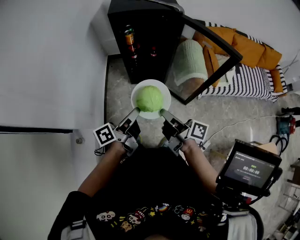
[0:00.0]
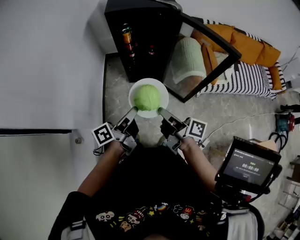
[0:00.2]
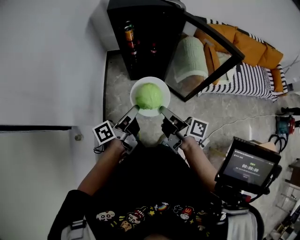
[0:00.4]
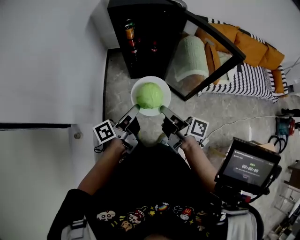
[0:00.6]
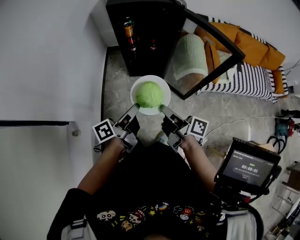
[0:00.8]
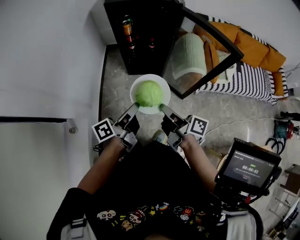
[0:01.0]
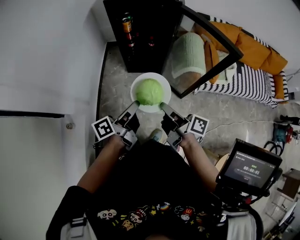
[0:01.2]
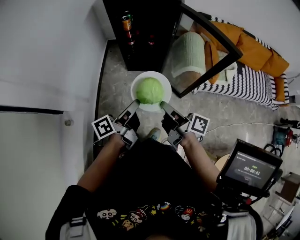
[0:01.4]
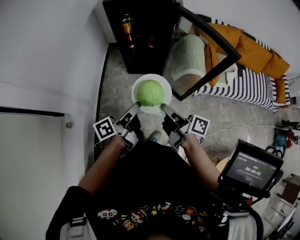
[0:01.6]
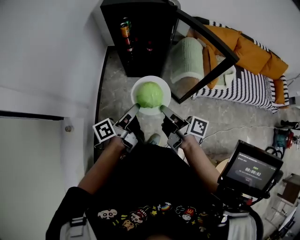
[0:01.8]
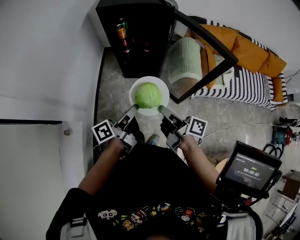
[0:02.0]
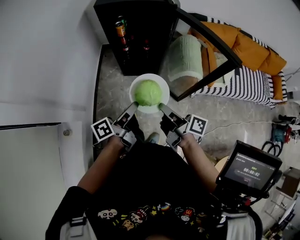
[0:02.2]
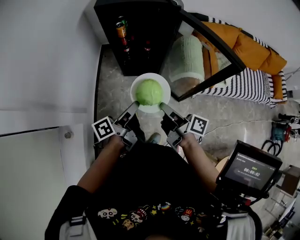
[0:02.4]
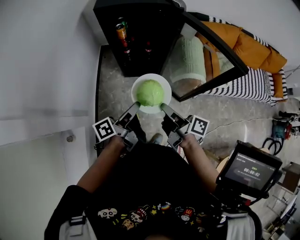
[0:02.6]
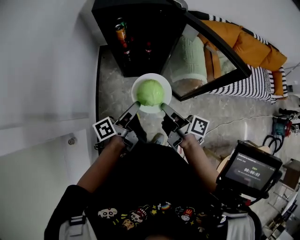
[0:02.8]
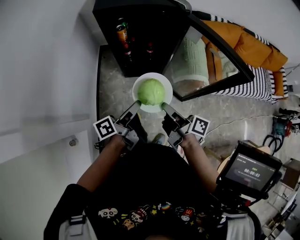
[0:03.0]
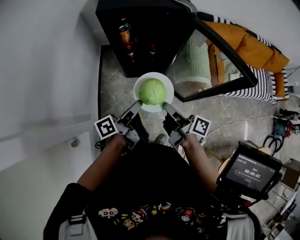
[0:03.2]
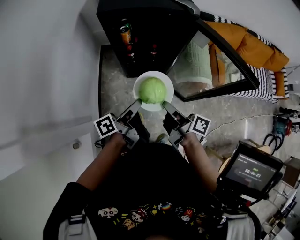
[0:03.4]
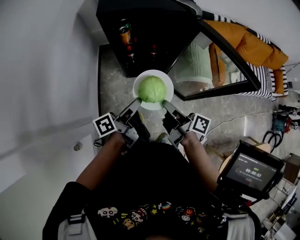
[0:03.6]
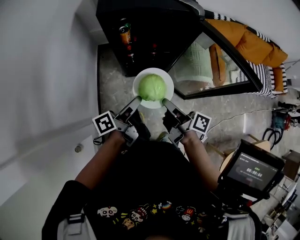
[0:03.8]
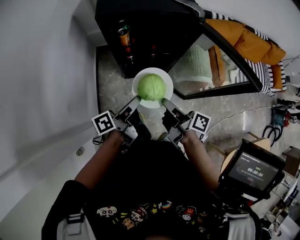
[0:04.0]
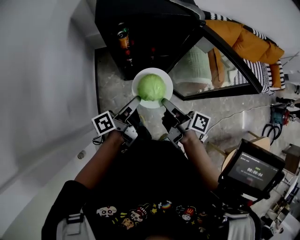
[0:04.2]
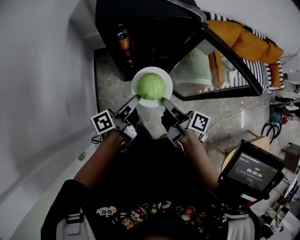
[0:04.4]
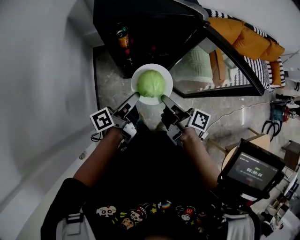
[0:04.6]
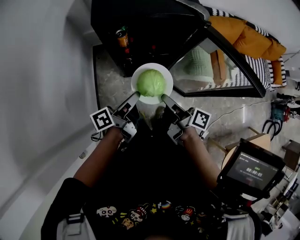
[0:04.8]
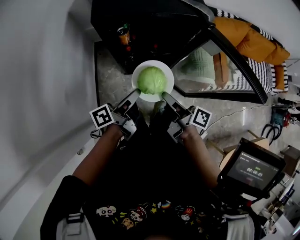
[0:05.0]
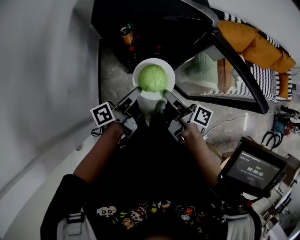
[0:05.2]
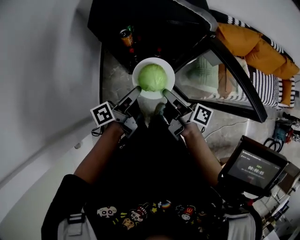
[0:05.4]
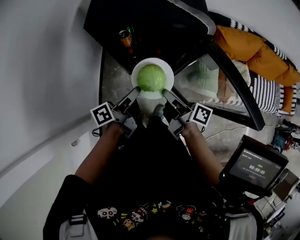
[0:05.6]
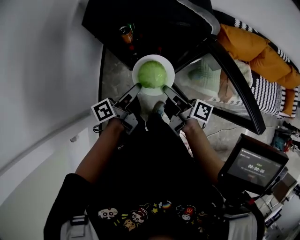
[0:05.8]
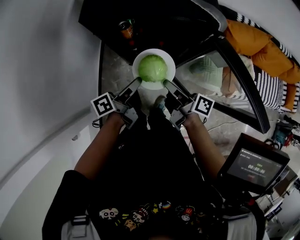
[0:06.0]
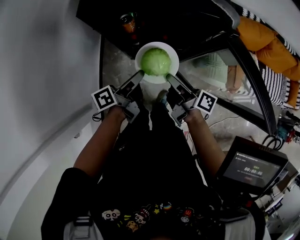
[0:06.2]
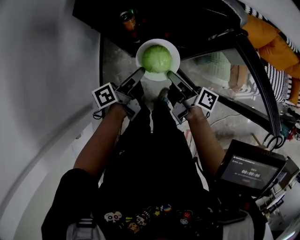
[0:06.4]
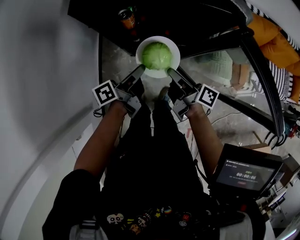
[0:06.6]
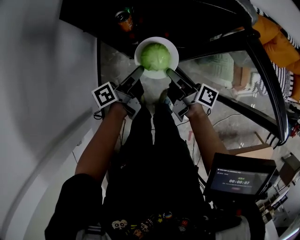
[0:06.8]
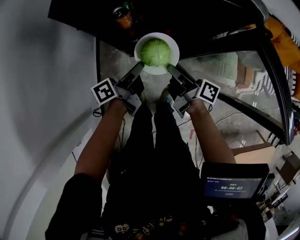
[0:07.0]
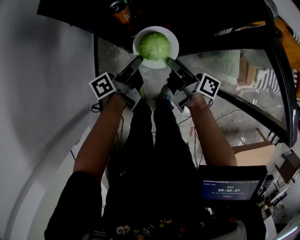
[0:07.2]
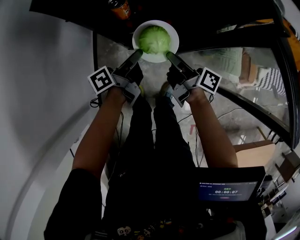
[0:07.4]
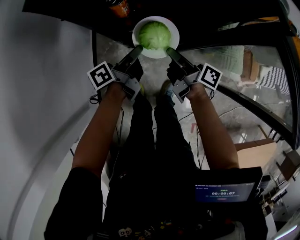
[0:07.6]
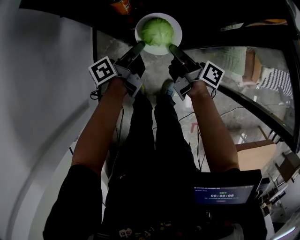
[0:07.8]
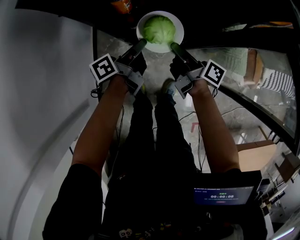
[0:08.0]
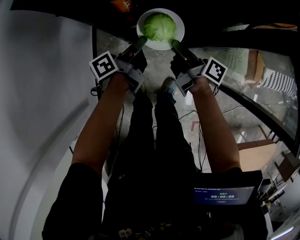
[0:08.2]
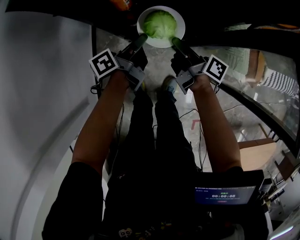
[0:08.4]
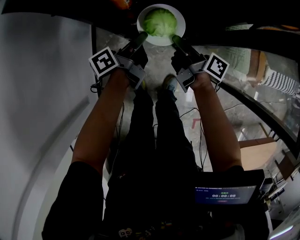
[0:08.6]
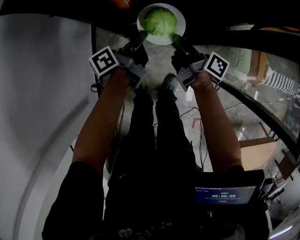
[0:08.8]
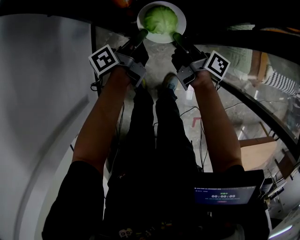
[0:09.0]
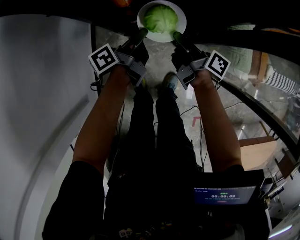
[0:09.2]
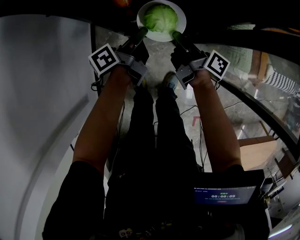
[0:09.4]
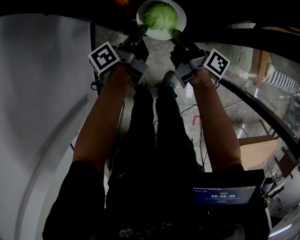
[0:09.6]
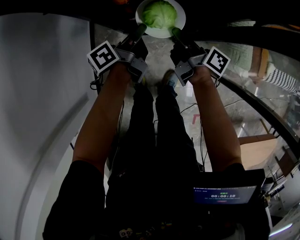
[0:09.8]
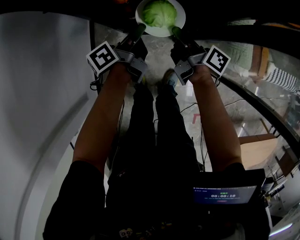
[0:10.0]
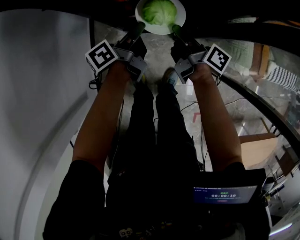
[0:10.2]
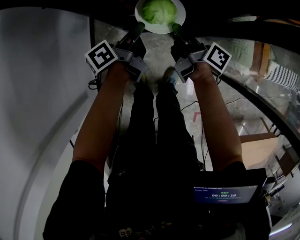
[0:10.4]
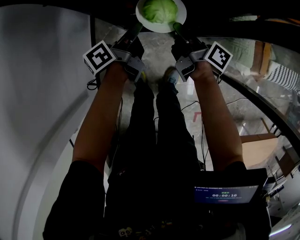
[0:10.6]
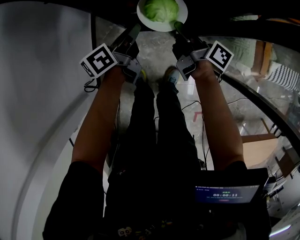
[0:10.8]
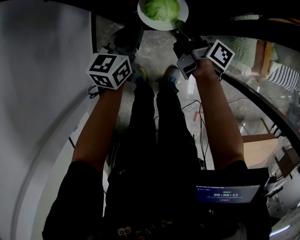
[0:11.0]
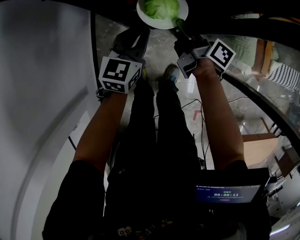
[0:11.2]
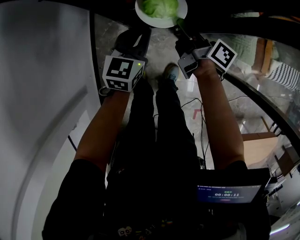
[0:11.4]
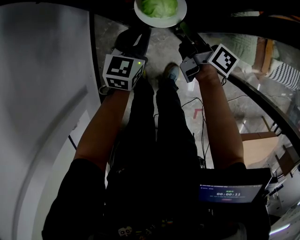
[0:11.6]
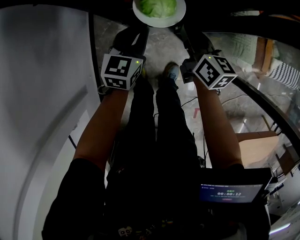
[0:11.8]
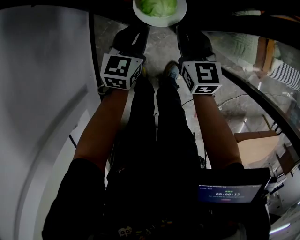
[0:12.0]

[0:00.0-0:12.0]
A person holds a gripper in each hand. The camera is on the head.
0:00.0 to 0:03.0: Both grippers stay about where they are.
0:03.0 to 0:04.4: Both grippers stay about where they are.
0:04.4 to 0:10.4: There are only small adjustments of the grippers.
0:10.4 to 0:12.0: The left gripper twists some 70 degrees clockwise, seen from behind, while the right gripper rotates around the line of its fingers by roughly 80 degrees, counterclockwise from behind.

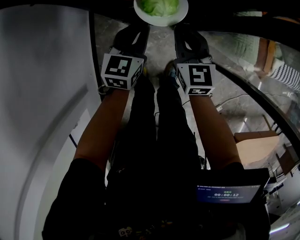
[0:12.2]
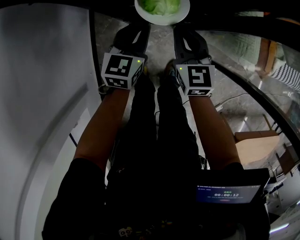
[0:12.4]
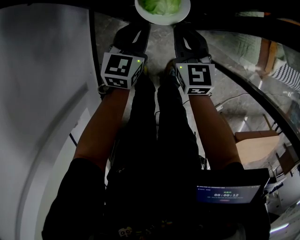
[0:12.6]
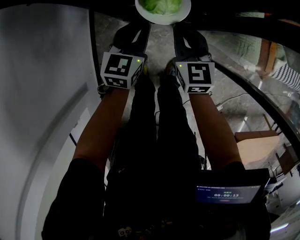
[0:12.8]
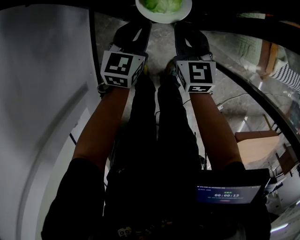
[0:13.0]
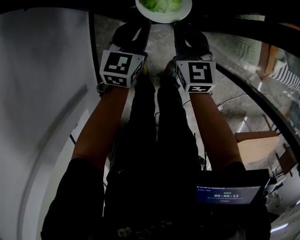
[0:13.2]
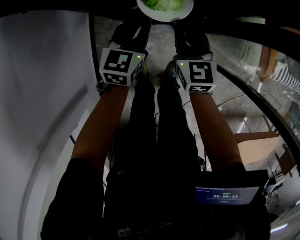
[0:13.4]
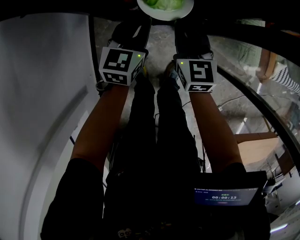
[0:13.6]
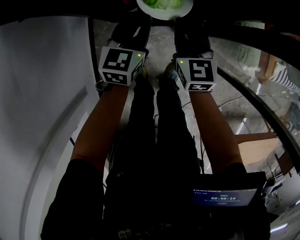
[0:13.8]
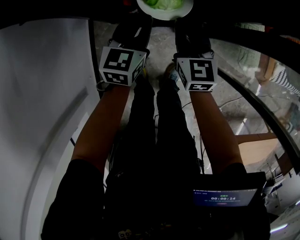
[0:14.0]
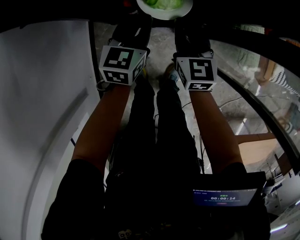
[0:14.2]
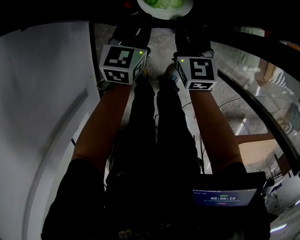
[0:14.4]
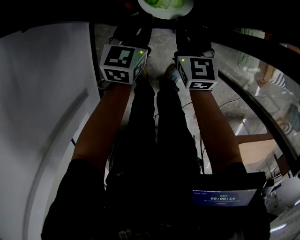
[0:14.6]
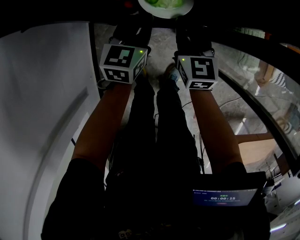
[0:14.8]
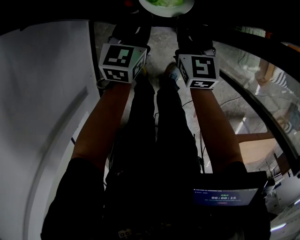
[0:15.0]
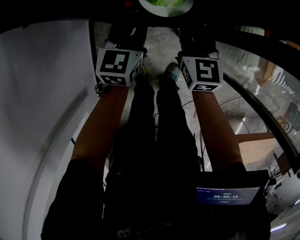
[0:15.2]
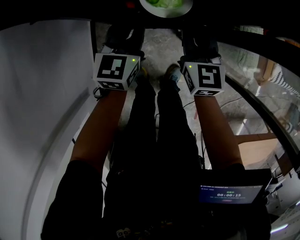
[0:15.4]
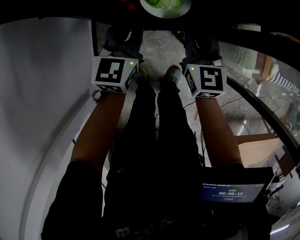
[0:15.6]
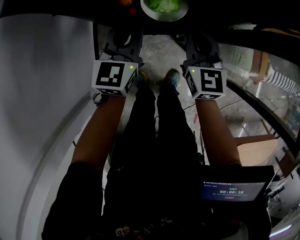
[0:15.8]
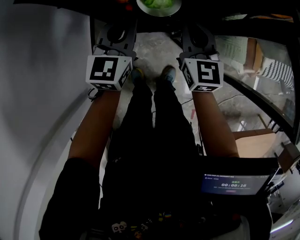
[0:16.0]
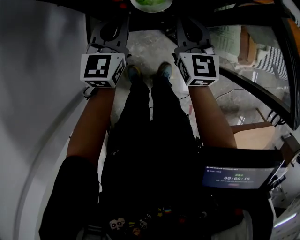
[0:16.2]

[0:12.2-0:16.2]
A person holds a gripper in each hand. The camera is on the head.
0:12.2 to 0:13.6: There are only small adjustments of the grippers.
0:13.6 to 0:14.8: The grippers make only small movements.
0:14.8 to 0:16.2: The right gripper travels upward by about 5 cm. The left gripper goes some 10 cm upward and backward.

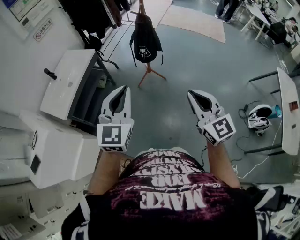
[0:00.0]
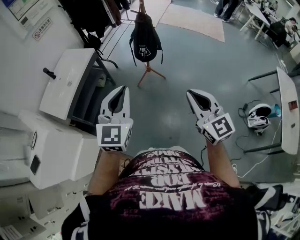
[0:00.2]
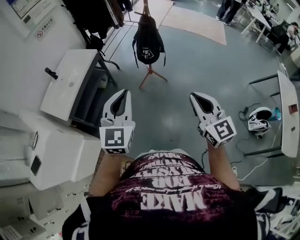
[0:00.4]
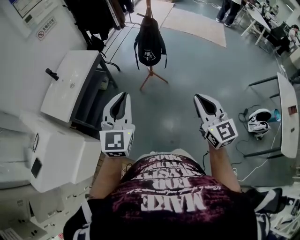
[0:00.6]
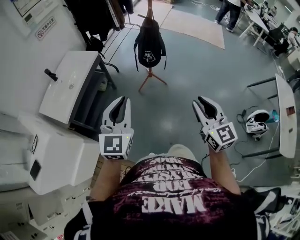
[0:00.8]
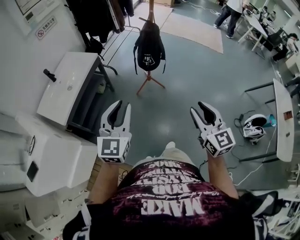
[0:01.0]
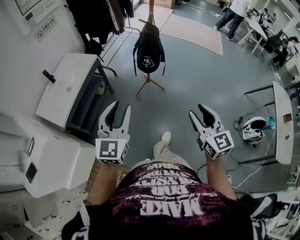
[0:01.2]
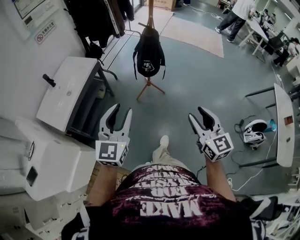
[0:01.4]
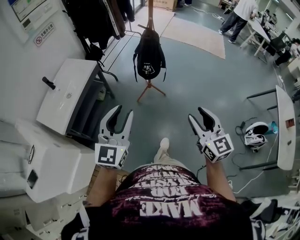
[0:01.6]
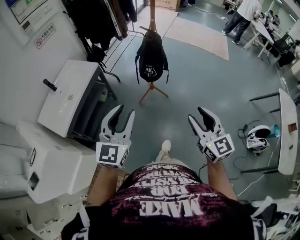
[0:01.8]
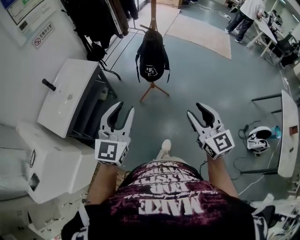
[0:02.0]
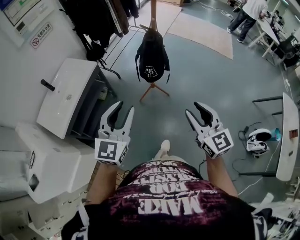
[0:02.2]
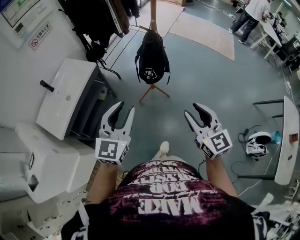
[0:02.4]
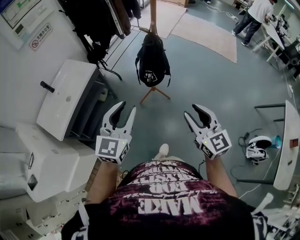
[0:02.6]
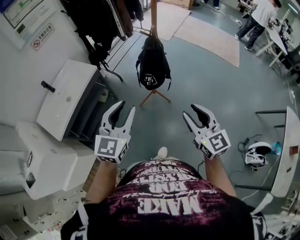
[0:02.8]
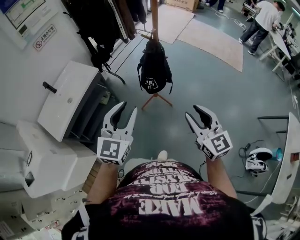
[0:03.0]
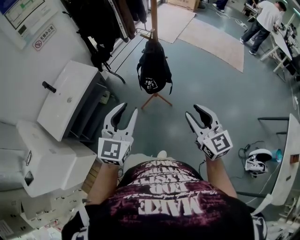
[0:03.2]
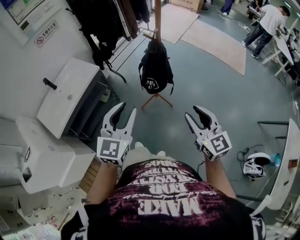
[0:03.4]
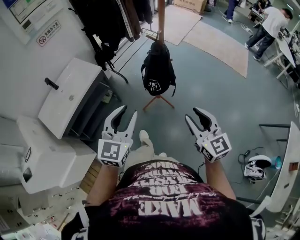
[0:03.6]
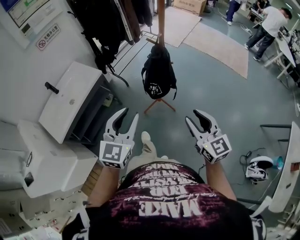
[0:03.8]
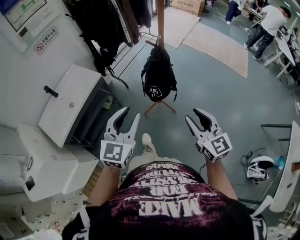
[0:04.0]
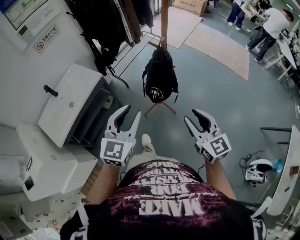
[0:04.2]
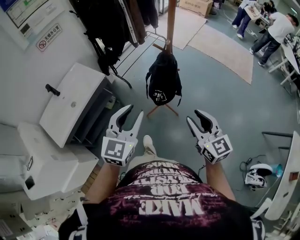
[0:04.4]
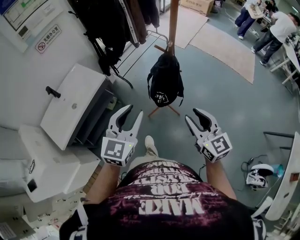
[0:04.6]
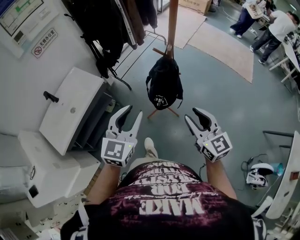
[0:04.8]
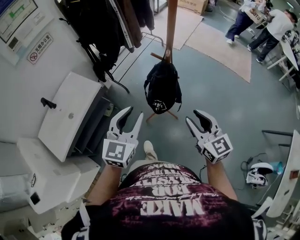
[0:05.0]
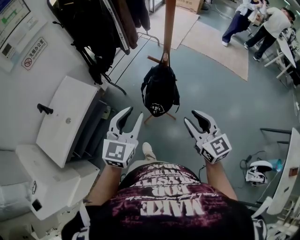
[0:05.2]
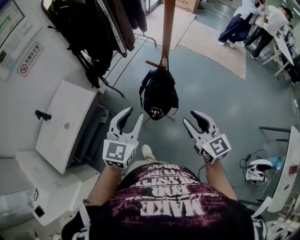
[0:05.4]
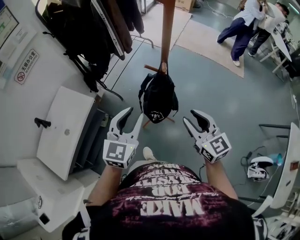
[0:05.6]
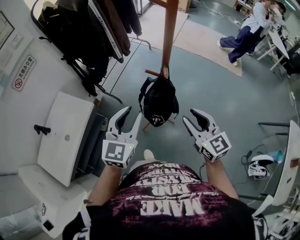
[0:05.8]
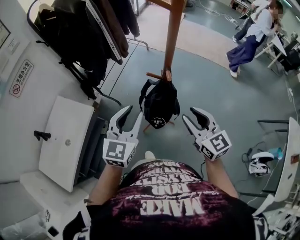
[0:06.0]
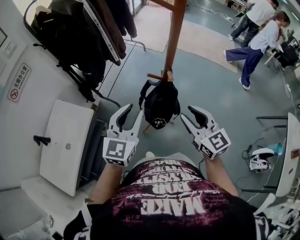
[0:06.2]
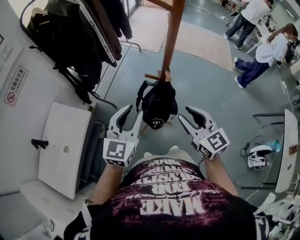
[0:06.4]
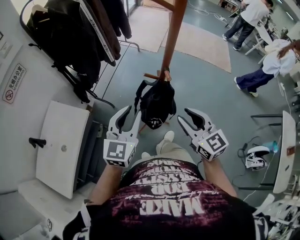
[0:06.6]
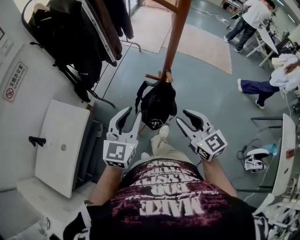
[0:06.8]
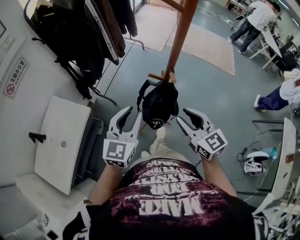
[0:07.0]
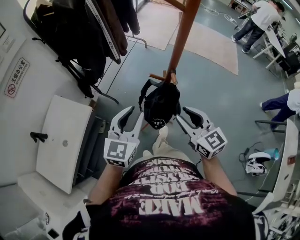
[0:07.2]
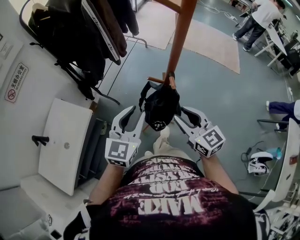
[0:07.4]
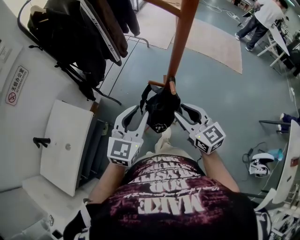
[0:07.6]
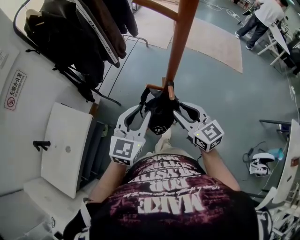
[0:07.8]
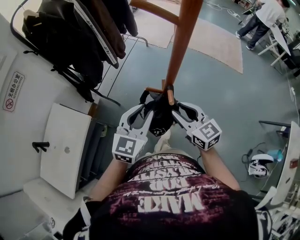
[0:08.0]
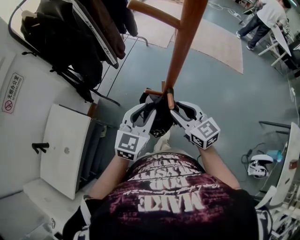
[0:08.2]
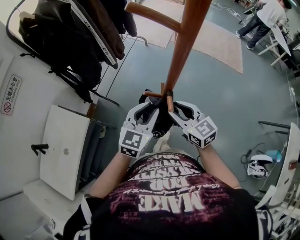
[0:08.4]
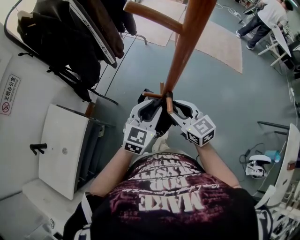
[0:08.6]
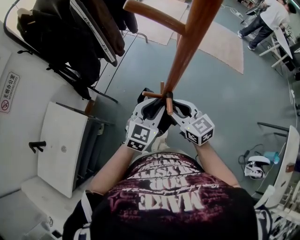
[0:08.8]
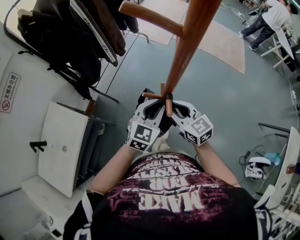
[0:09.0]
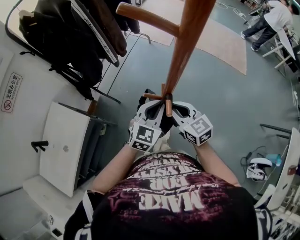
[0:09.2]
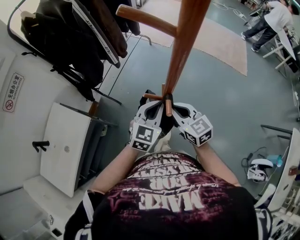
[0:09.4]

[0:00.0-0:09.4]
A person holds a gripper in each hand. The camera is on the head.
0:00.0 to 0:01.6: The grippers both shift forward by some 5 cm. The right gripper opens up. Meanwhile the left gripper opens its fingers.
0:01.6 to 0:03.2: The left gripper travels forward and to the right by roughly 20 cm; the right gripper is displaced forward by about 20 cm.
0:03.2 to 0:04.8: The two grippers go some 15 cm forward.
0:04.8 to 0:06.2: Both grippers travel together forward, approximately 15 cm.
0:06.2 to 0:07.8: Both grippers travel together forward, approximately 10 cm.
0:07.8 to 0:09.4: The left gripper heads to the right, forward and downward, covering approximately 15 cm, and closes. The right gripper heads forward and downward, covering approximately 10 cm, and closes.
